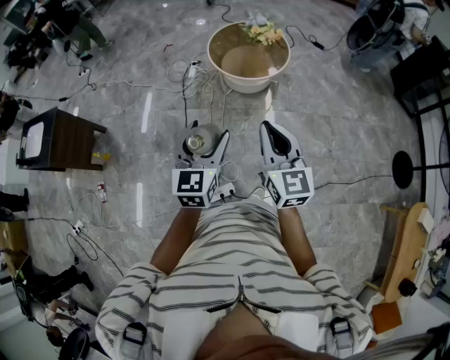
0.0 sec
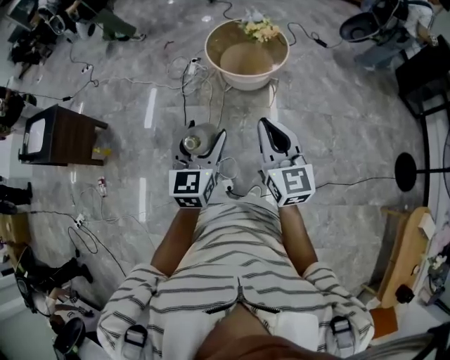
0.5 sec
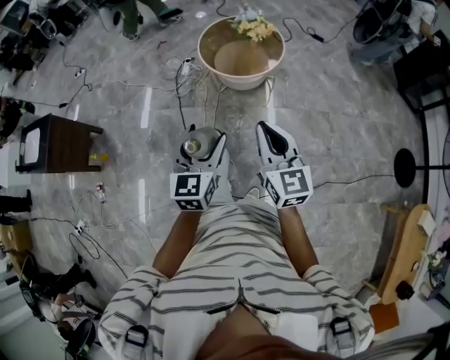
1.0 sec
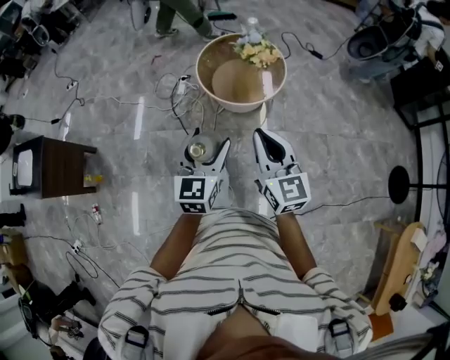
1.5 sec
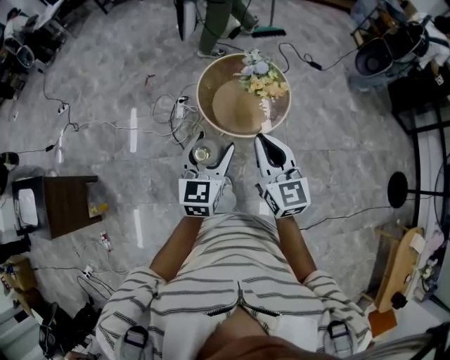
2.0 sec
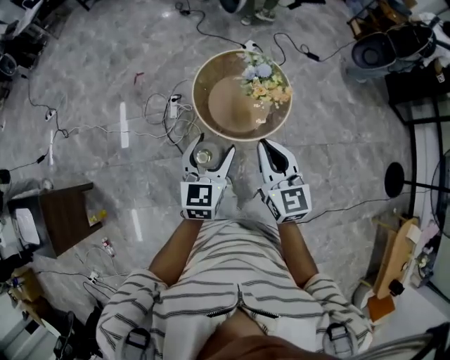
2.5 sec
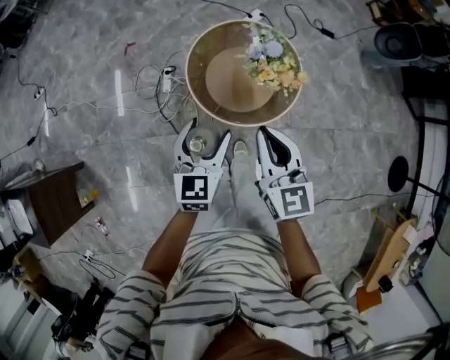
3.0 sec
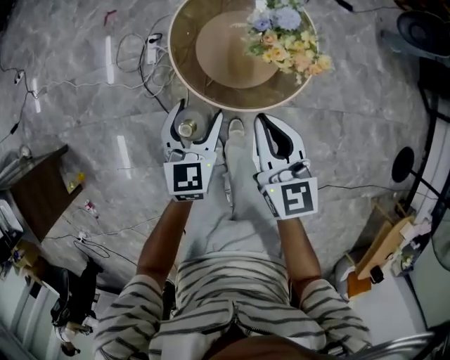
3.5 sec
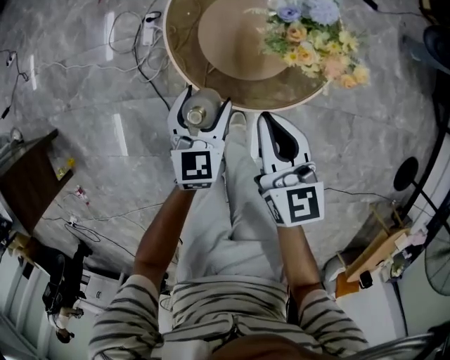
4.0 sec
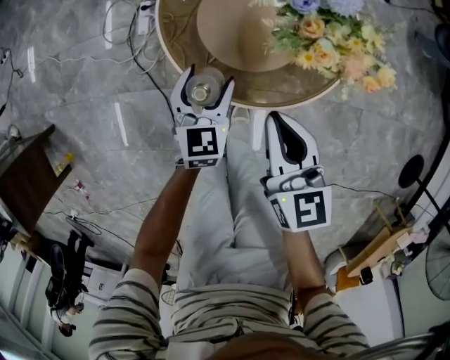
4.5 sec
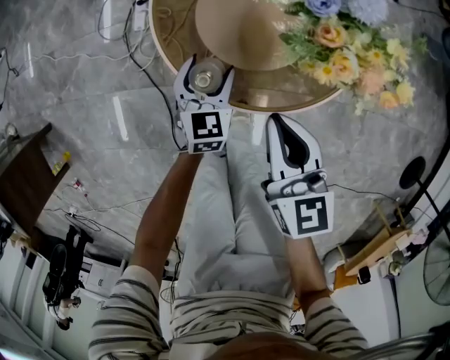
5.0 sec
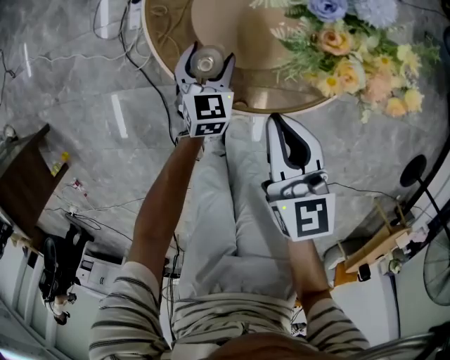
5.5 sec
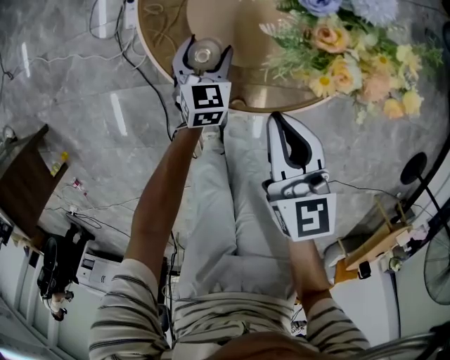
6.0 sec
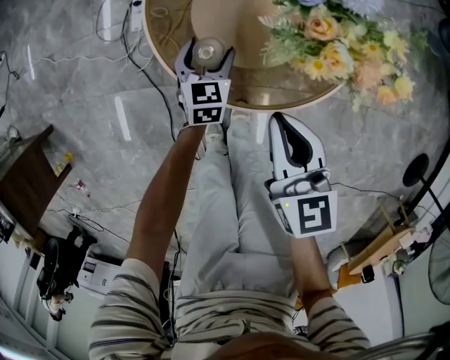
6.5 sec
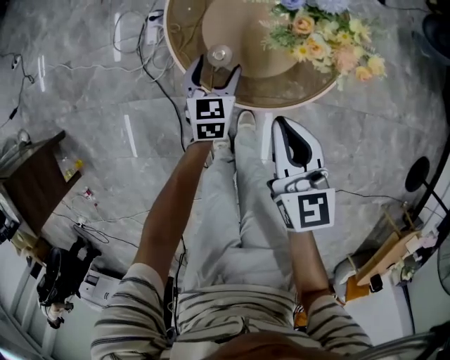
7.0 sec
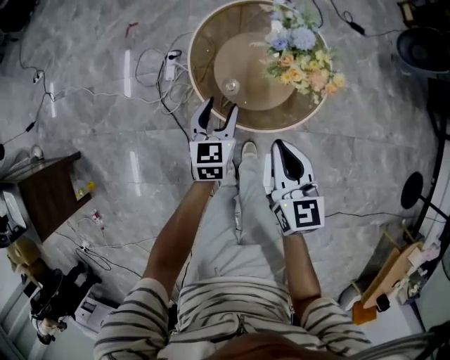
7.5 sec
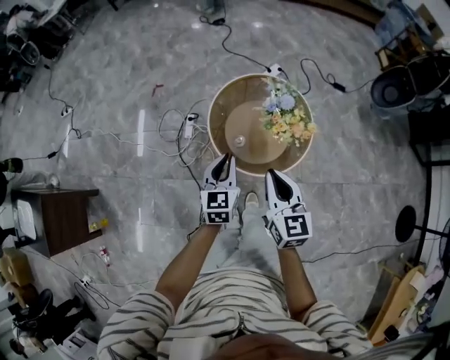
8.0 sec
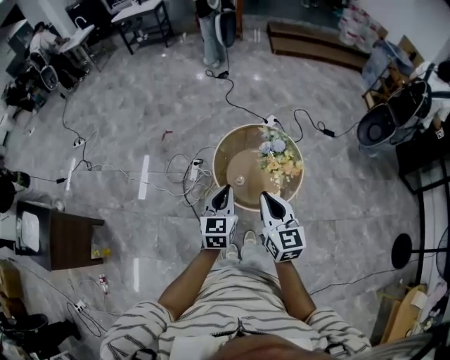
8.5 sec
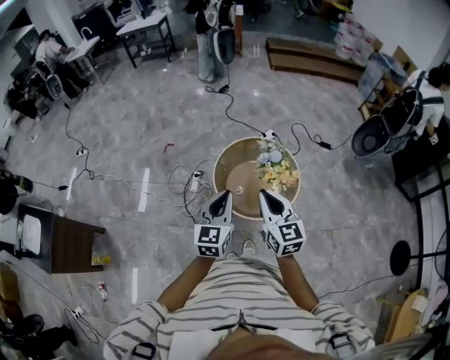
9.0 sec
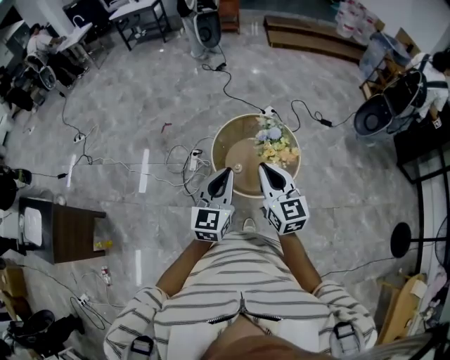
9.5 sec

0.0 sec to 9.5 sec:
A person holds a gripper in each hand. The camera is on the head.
0.0 sec to 2.0 sec: The pair of grippers is taken forward, roughly 40 cm.
2.0 sec to 4.0 sec: Both grippers travel together downward and forward, some 40 cm. The right gripper turns by about 20 degrees.
4.0 sec to 5.5 sec: The left gripper moves downward and forward, some 20 cm. Meanwhile the right gripper is displaced downward by roughly 10 cm.
5.5 sec to 7.5 sec: The right gripper shifts some 15 cm upward and backward. Meanwhile the left gripper shifts some 25 cm upward.
7.5 sec to 9.5 sec: The two grippers go some 35 cm upward. The left gripper turns by about 30 degrees, and closes up.

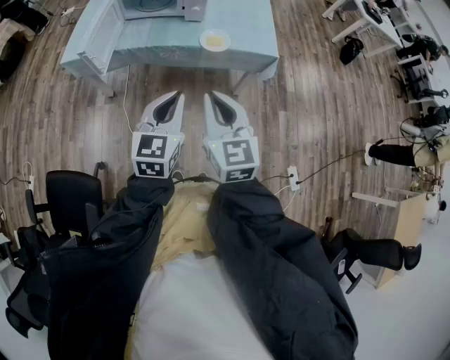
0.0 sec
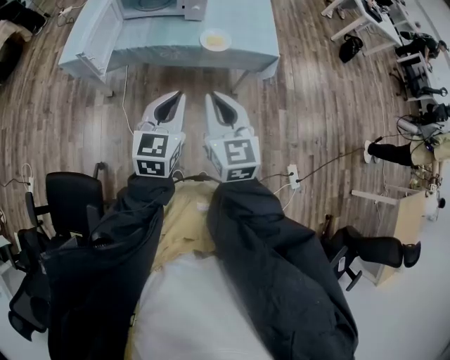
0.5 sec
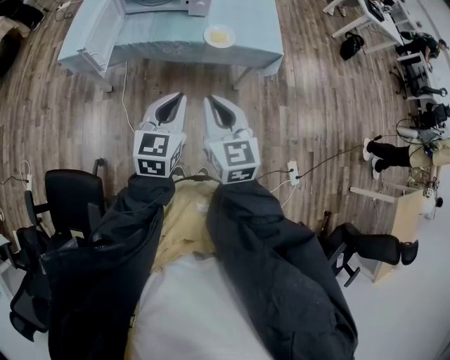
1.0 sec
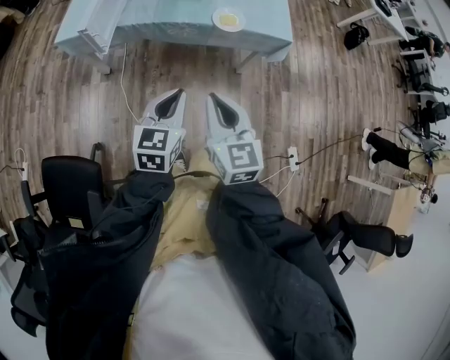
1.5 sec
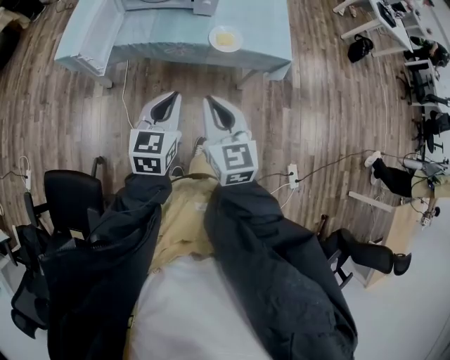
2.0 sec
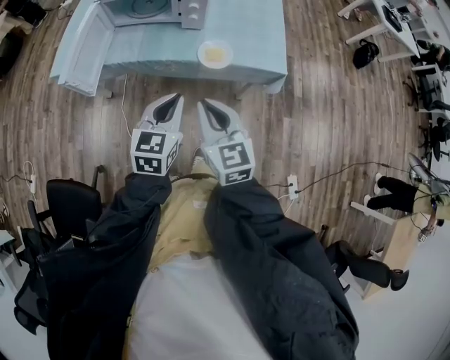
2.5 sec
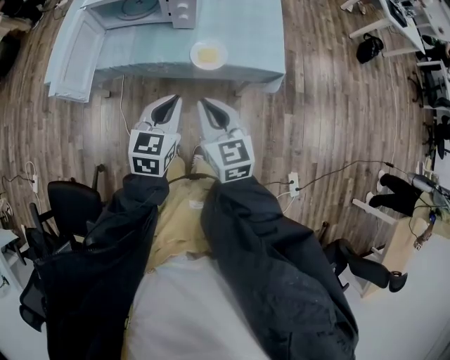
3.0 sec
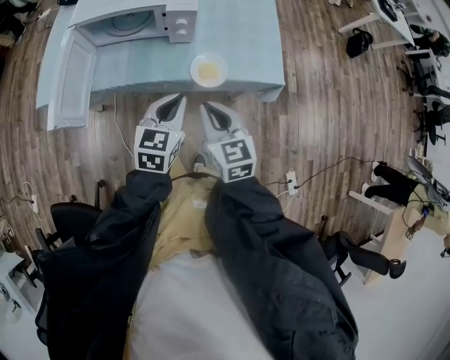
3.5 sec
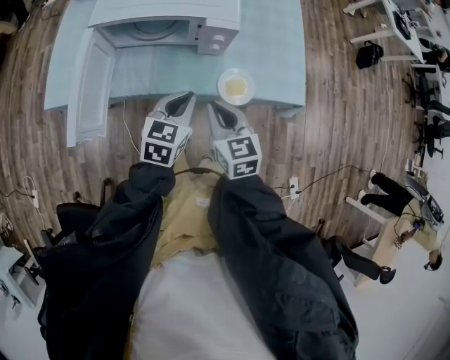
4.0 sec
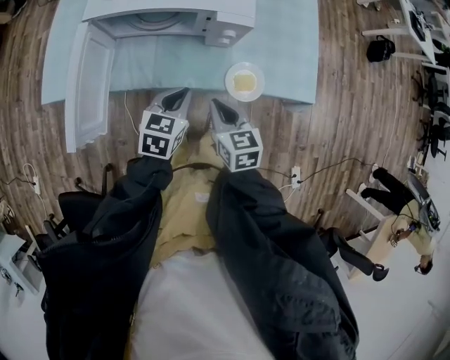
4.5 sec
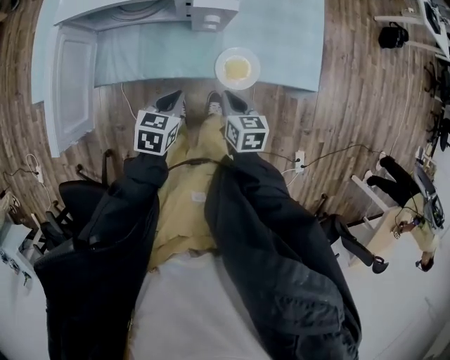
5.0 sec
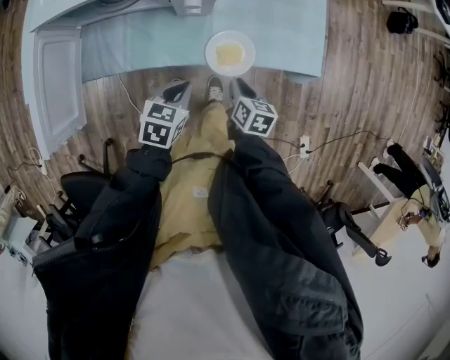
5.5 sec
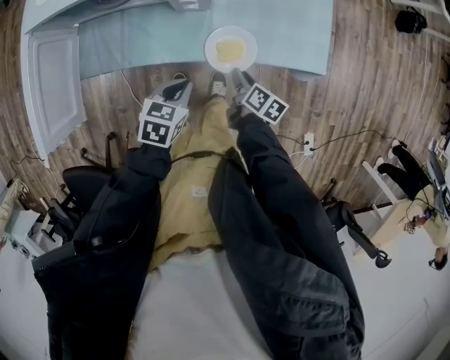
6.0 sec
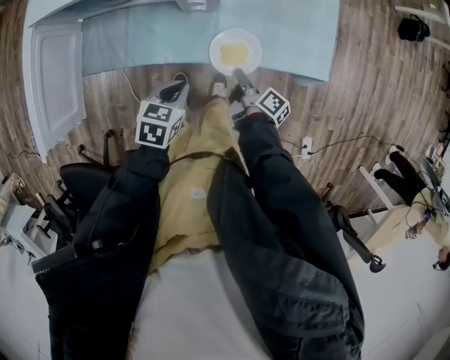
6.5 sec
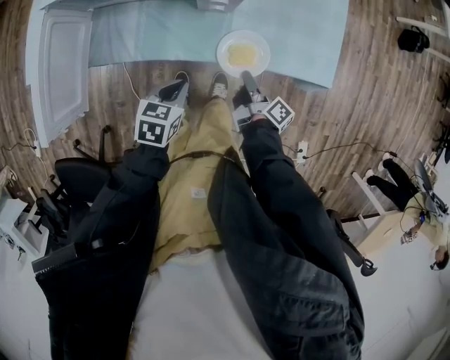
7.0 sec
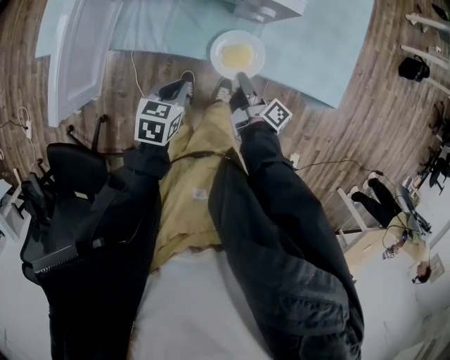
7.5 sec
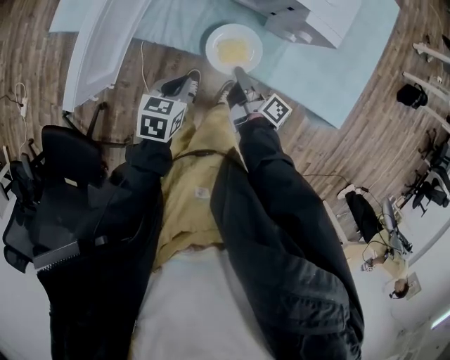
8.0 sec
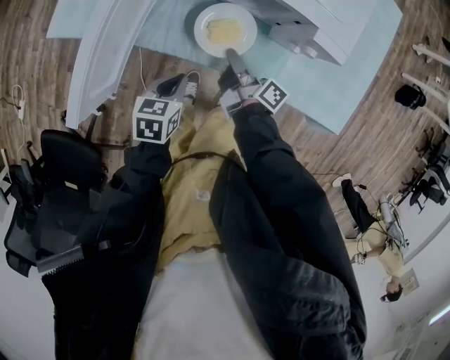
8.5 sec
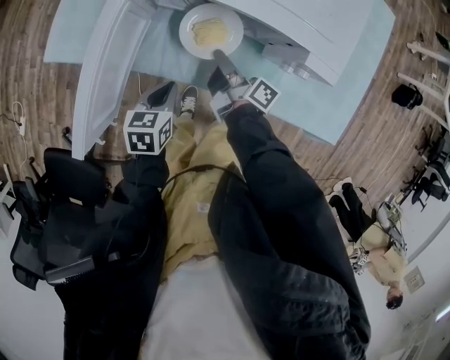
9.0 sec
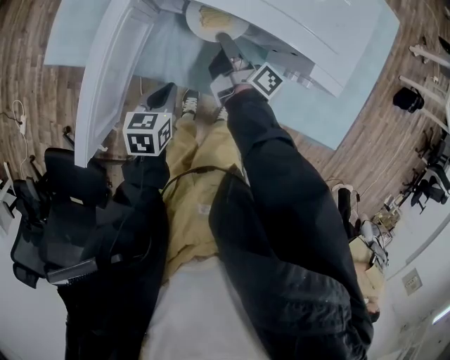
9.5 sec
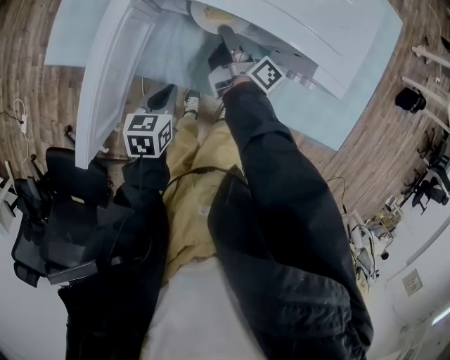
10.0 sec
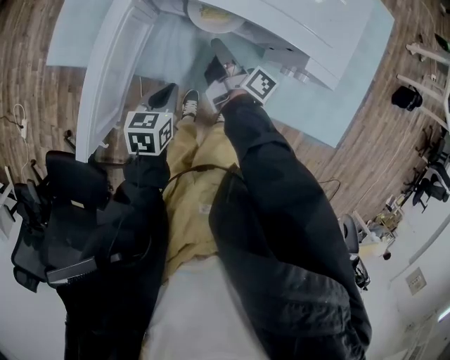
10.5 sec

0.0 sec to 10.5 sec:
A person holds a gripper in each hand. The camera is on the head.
0.0 sec to 2.0 sec: The grippers both shift forward and downward by some 10 cm.
2.0 sec to 4.0 sec: Both grippers move forward, some 25 cm.
4.0 sec to 6.5 sec: The right gripper travels downward and to the right by some 30 cm, twists about 80 degrees clockwise, seen from behind, and opens, then closes once more, while the left gripper heads downward, covering roughly 15 cm, and turns by about 30 degrees.
6.5 sec to 8.5 sec: Both grippers move to the left, about 20 cm. The right gripper rotates about 30 degrees. The left gripper rotates about 30 degrees.
8.5 sec to 10.5 sec: The right gripper shifts approximately 10 cm forward; the left gripper travels forward by about 5 cm.

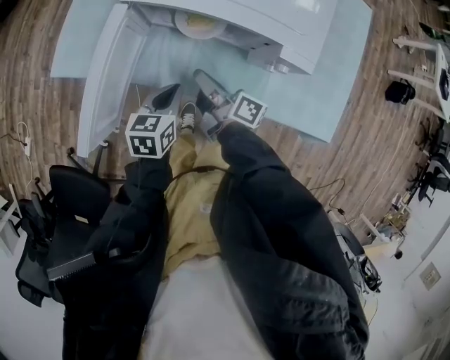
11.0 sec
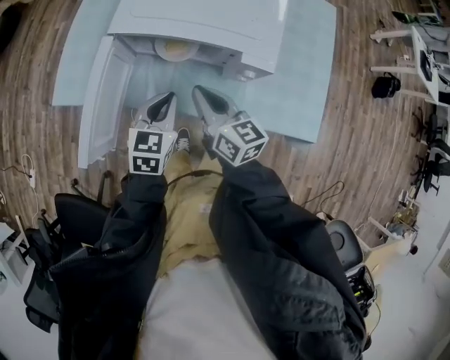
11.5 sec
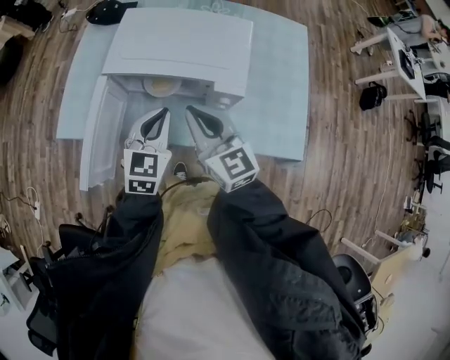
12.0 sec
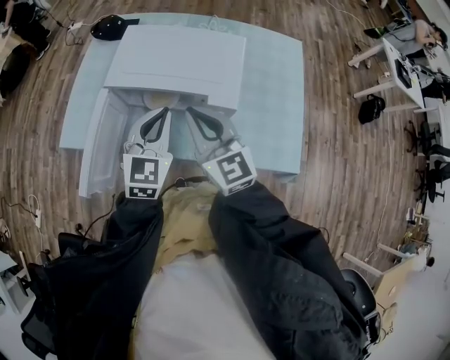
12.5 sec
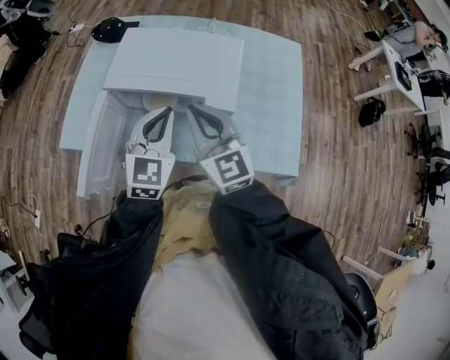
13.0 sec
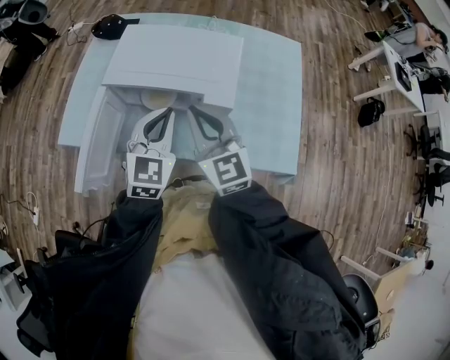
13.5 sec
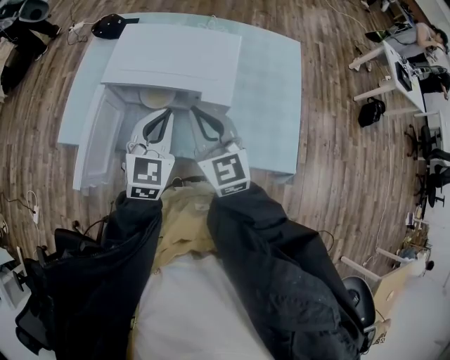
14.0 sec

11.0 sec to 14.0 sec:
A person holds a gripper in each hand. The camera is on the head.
11.0 sec to 12.5 sec: The right gripper heads upward, covering some 25 cm, and rotates around the line of its fingers by approximately 80 degrees, counterclockwise from behind. Meanwhile the left gripper travels upward and to the right by approximately 25 cm, and rotates some 50 degrees.
12.5 sec to 14.0 sec: There are only small adjustments of the grippers.

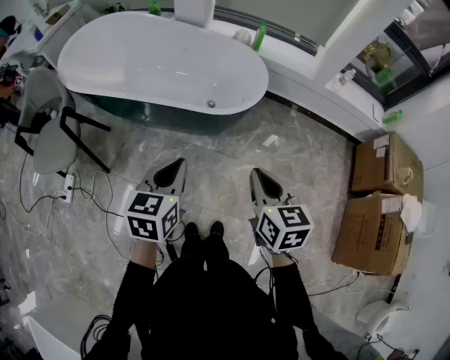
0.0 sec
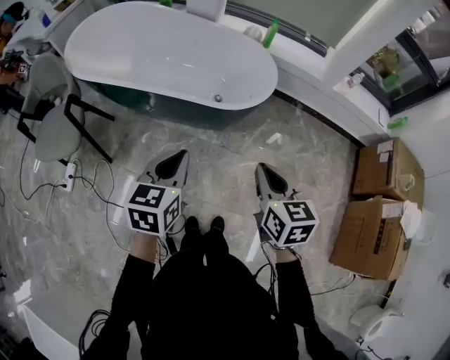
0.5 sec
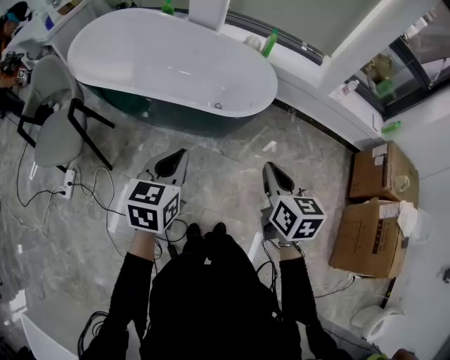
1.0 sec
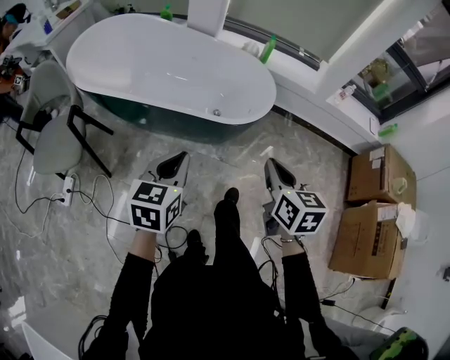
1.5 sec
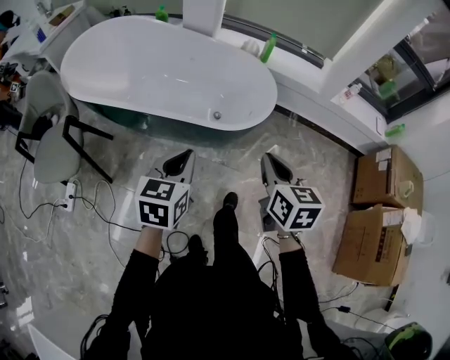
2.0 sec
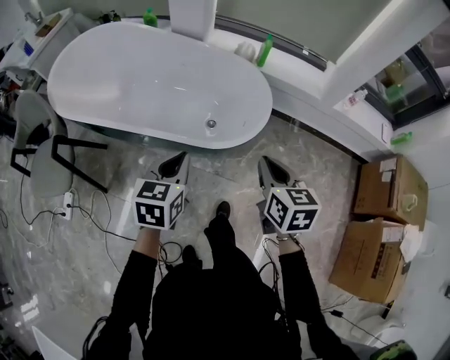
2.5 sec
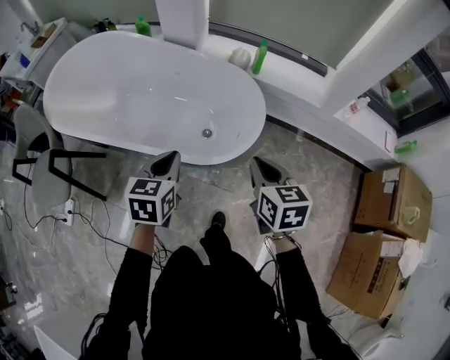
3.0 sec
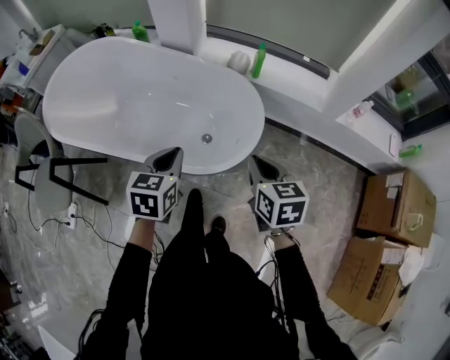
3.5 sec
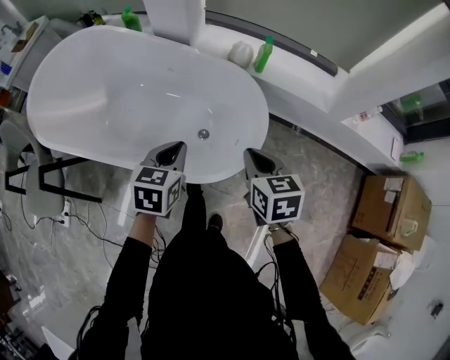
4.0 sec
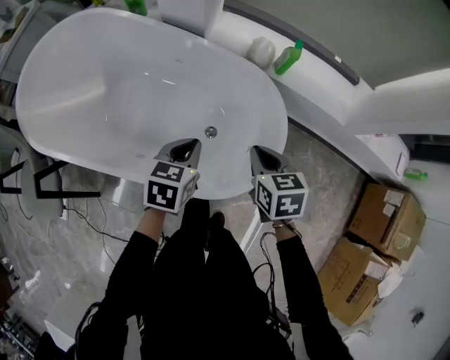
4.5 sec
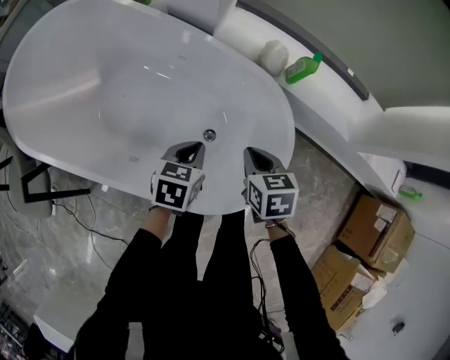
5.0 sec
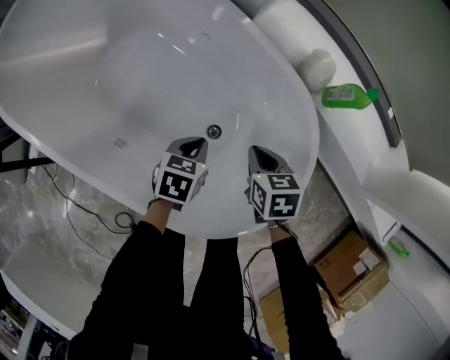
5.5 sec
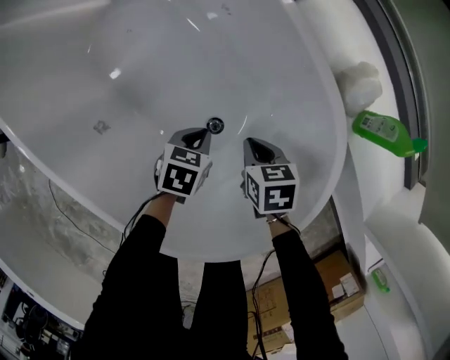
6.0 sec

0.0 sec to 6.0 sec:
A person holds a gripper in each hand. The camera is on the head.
0.0 sec to 2.0 sec: The grippers both shift forward by some 10 cm.
2.0 sec to 4.0 sec: Both grippers travel together forward, approximately 30 cm.
4.0 sec to 6.0 sec: Both grippers move downward, some 40 cm. The left gripper swivels approximately 30 degrees. Meanwhile the right gripper changes its angle by approximately 40 degrees.
